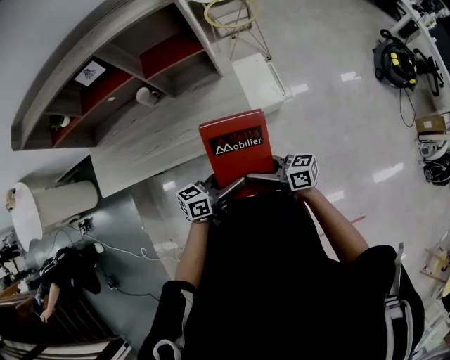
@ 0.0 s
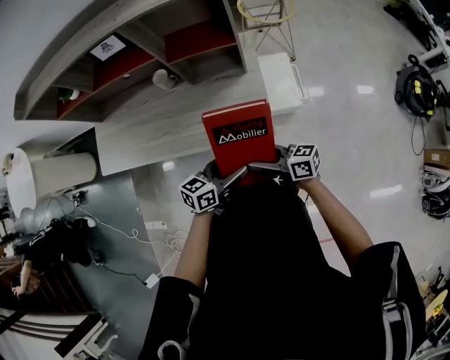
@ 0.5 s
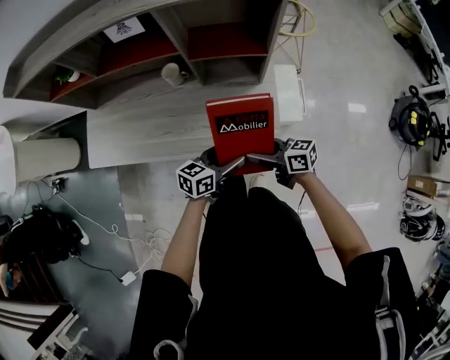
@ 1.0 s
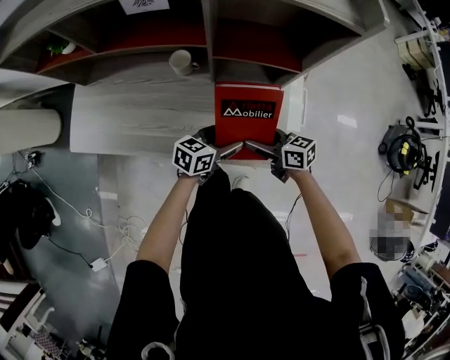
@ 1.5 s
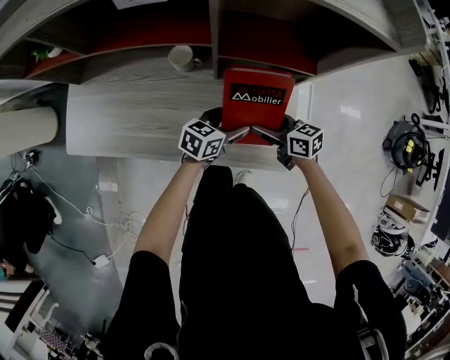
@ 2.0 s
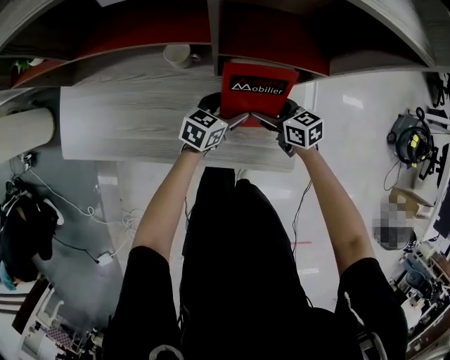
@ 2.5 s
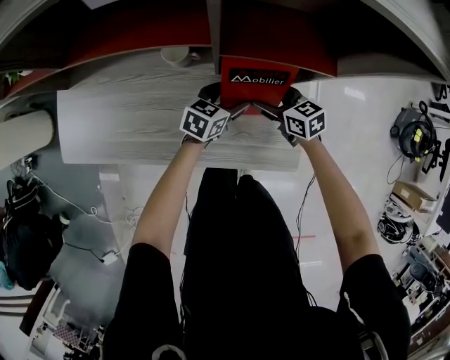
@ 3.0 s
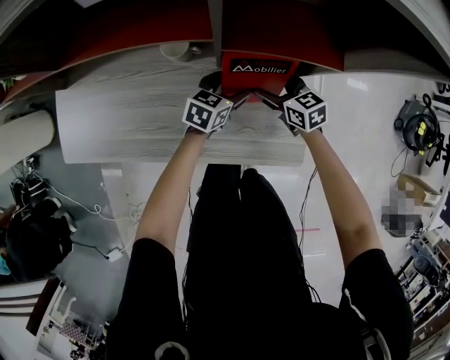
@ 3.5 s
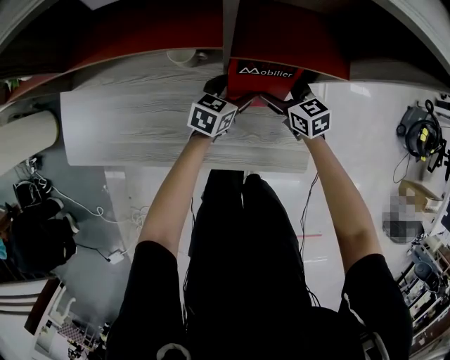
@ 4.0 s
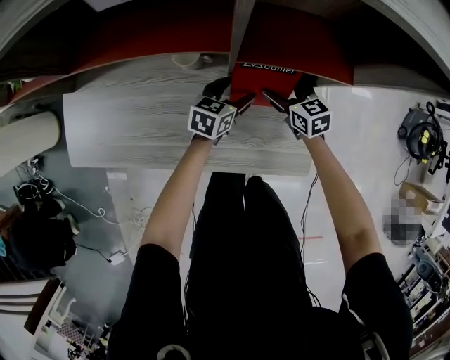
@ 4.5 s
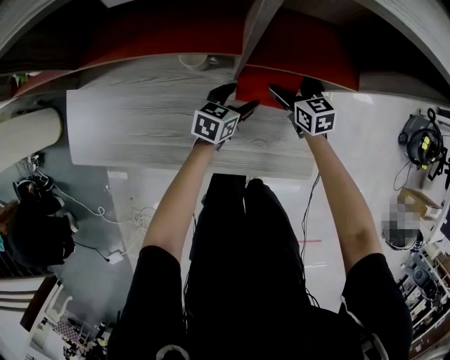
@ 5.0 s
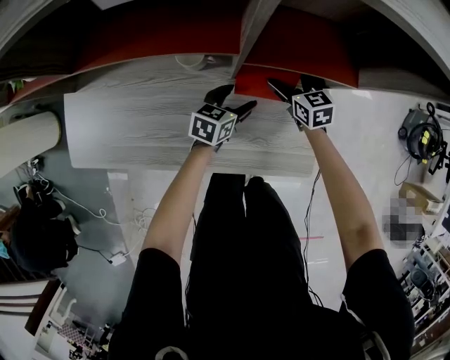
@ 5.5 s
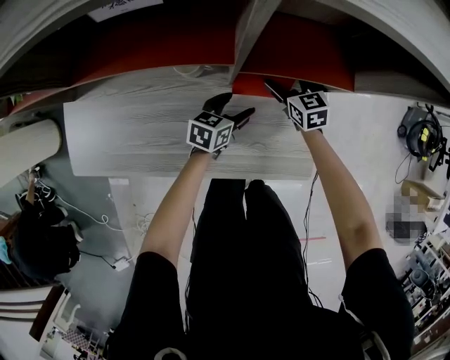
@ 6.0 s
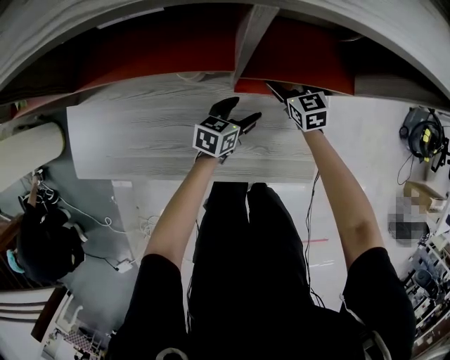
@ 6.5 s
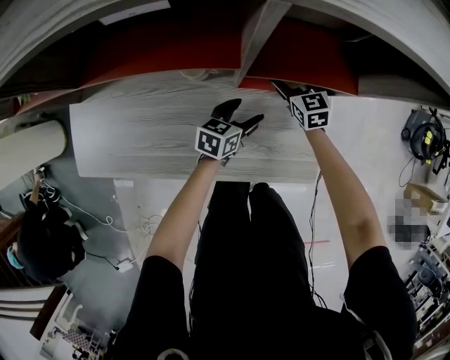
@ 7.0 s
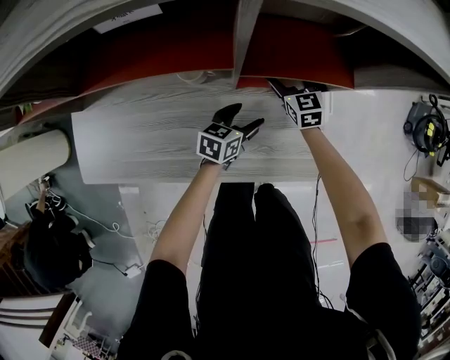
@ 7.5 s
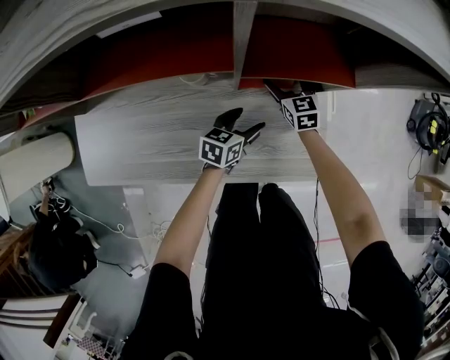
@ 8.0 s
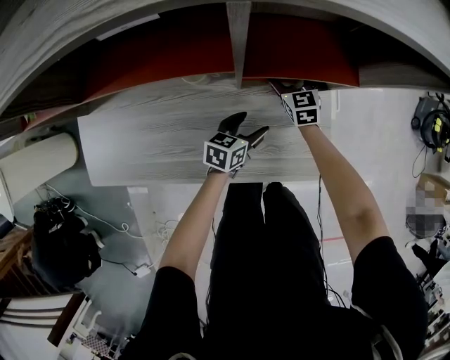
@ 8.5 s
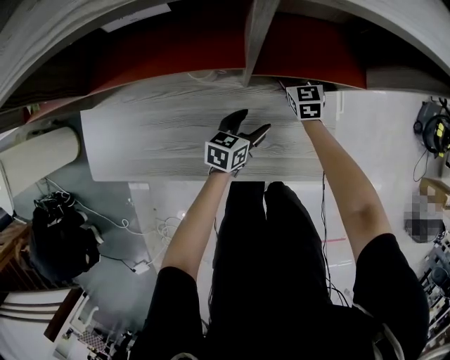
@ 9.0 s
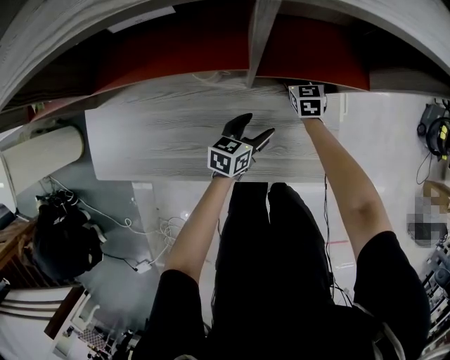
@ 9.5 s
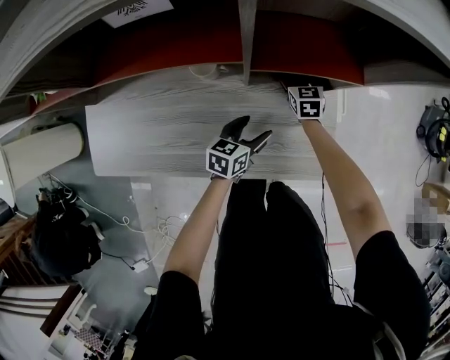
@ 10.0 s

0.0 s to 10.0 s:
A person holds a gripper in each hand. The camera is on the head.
0.0 to 2.0 s: The right gripper changes place by roughly 40 cm, and turns by approximately 30 degrees. Meanwhile the left gripper shifts by approximately 40 cm, turns by some 30 degrees, and opens.
2.0 to 4.0 s: The two grippers go about 15 cm forward and downward. The right gripper rotates about 20 degrees.
4.0 to 6.0 s: The right gripper moves forward, some 5 cm.
6.0 to 8.0 s: The grippers make only small movements.
8.0 to 10.0 s: The grippers stay close to where they were, moving slightly.

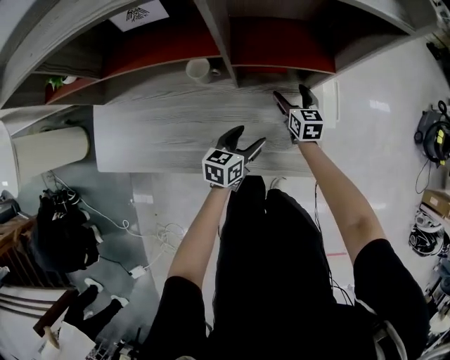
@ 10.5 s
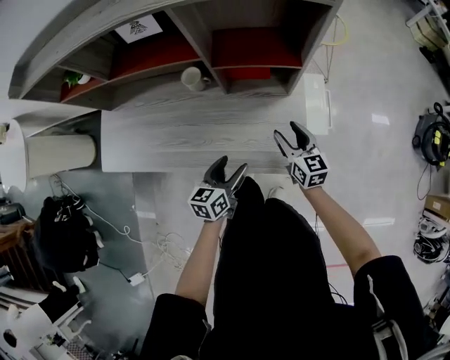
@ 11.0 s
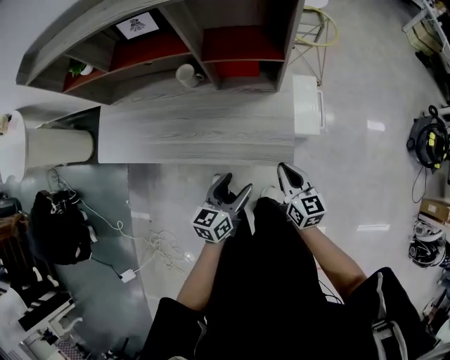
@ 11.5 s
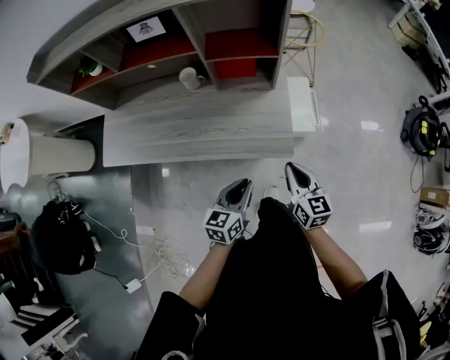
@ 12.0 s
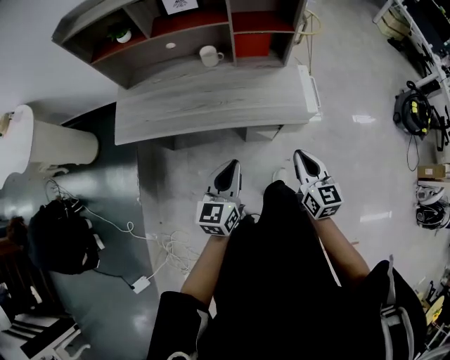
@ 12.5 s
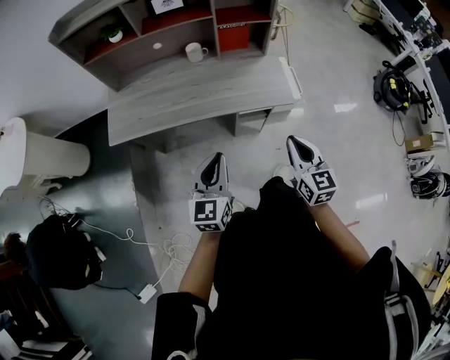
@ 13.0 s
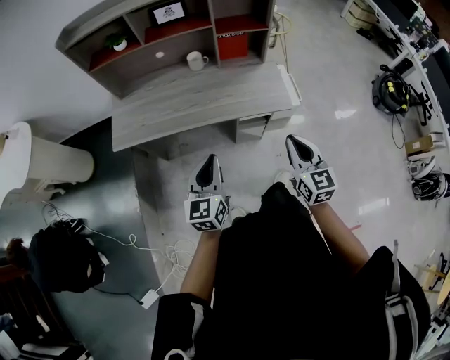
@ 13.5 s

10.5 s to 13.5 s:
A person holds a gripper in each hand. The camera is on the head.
10.5 to 12.0 s: Both grippers travel together backward and upward, some 35 cm. The left gripper closes up. The right gripper closes up.
12.0 to 13.5 s: The left gripper heads to the left, backward and upward, covering some 35 cm, and changes its angle by roughly 20 degrees; the right gripper moves backward, to the left and upward, about 30 cm.

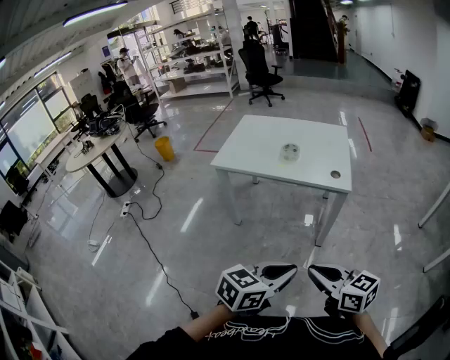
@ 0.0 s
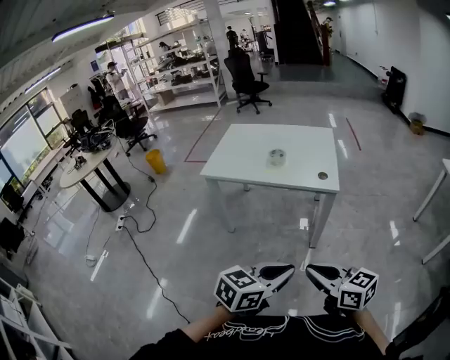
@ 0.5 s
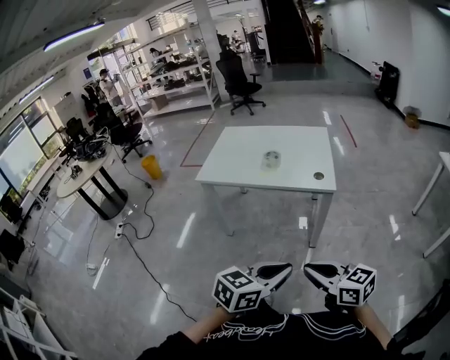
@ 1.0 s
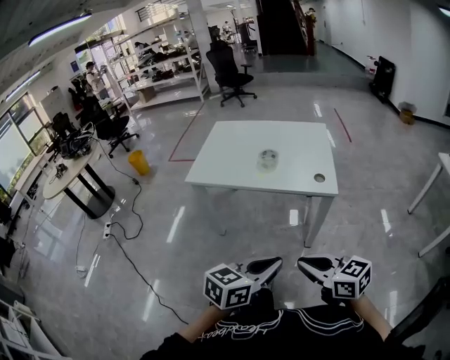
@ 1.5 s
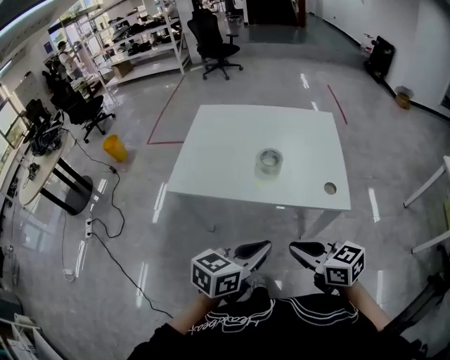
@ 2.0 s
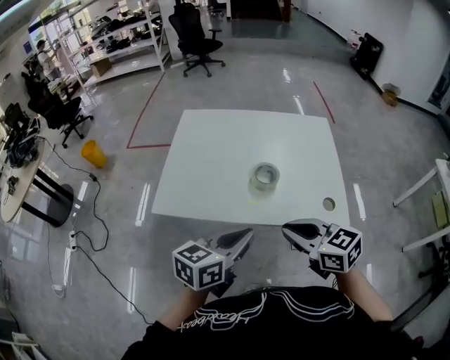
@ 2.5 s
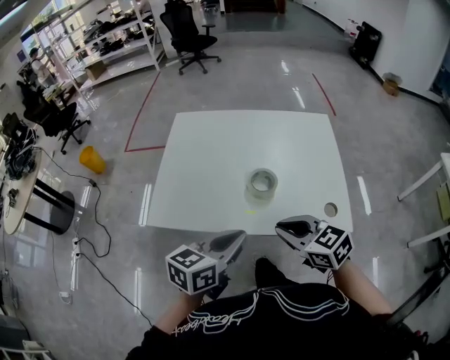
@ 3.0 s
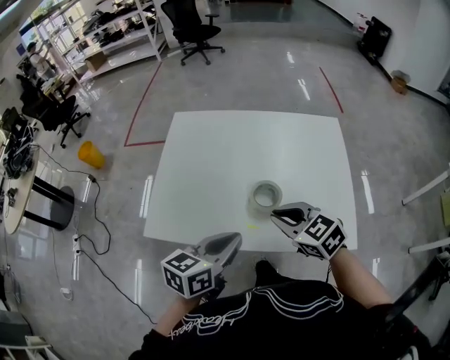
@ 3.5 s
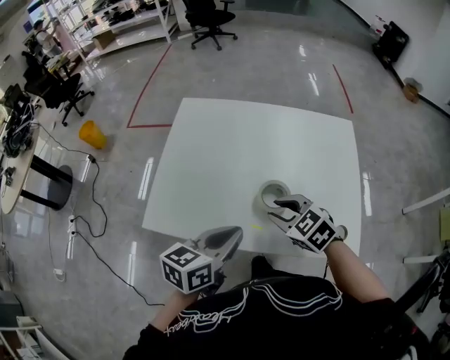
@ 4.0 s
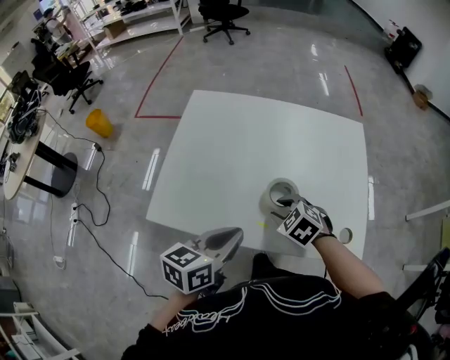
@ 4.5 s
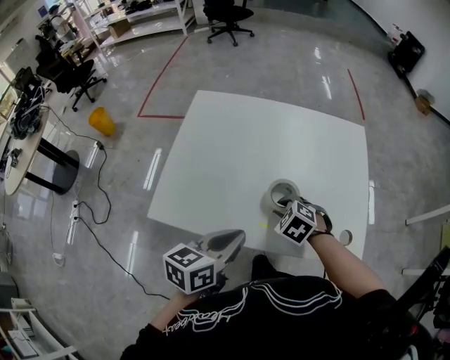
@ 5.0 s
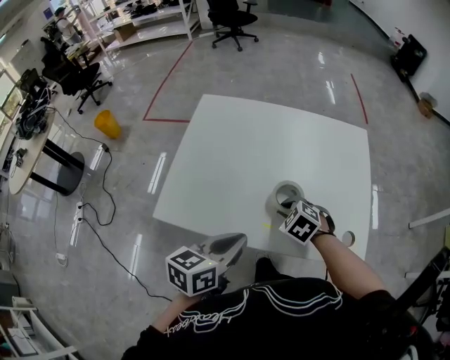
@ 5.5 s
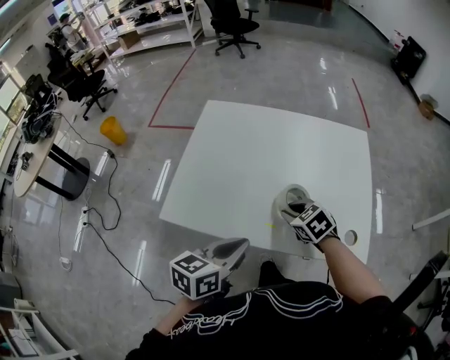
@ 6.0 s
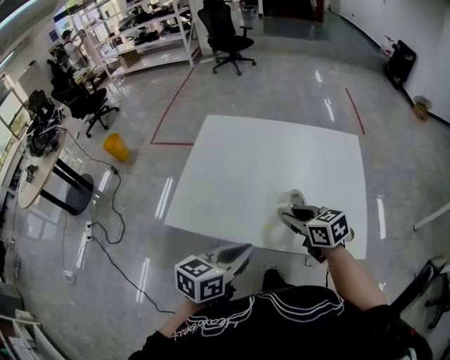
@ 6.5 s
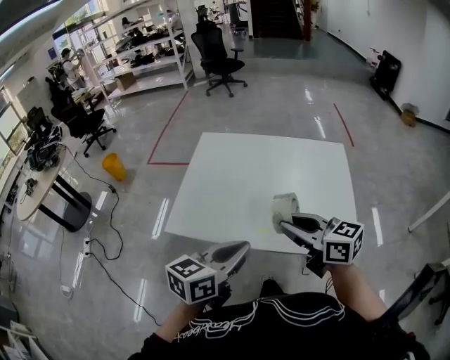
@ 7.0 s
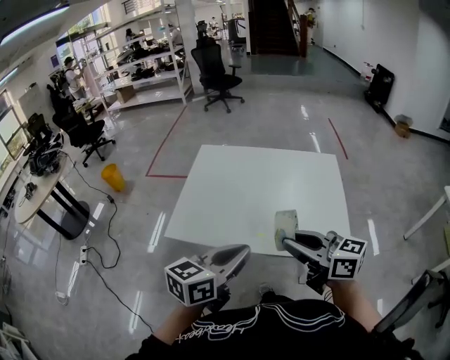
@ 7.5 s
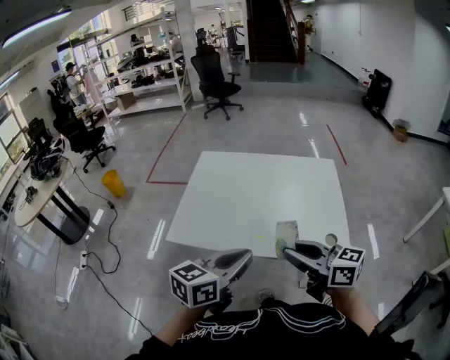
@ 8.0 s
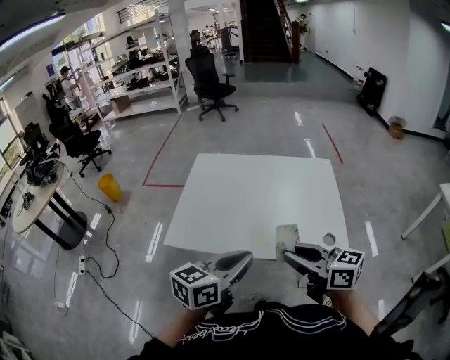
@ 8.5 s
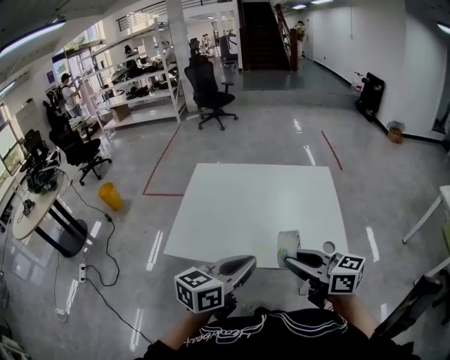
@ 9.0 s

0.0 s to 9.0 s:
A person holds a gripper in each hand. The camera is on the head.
0.0 to 2.0 s: The two grippers go some 30 cm forward.
2.0 to 4.5 s: The right gripper goes some 35 cm forward and downward, tips its fingers downward by roughly 40 degrees, and opens its fingers. Meanwhile the left gripper heads forward, covering roughly 25 cm.
4.5 to 7.0 s: The right gripper moves upward and backward, some 25 cm, and tips its fingers upward by some 50 degrees, while the left gripper shifts approximately 15 cm upward and backward.
7.0 to 9.0 s: The right gripper moves backward, about 10 cm.

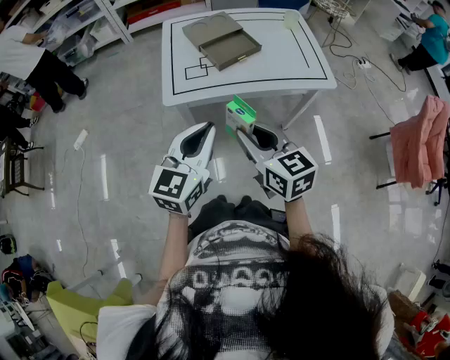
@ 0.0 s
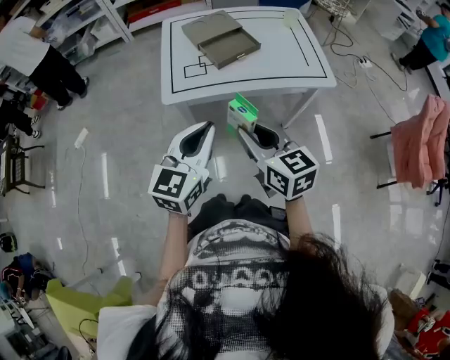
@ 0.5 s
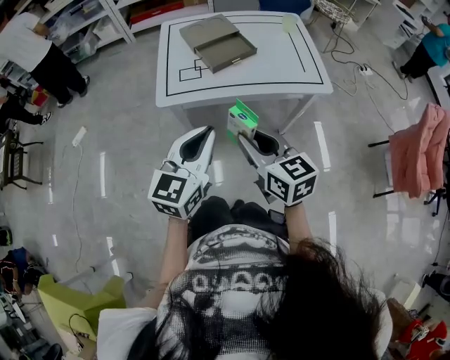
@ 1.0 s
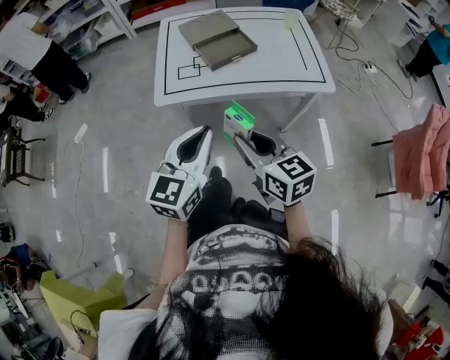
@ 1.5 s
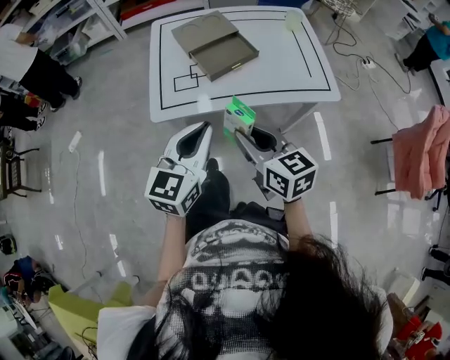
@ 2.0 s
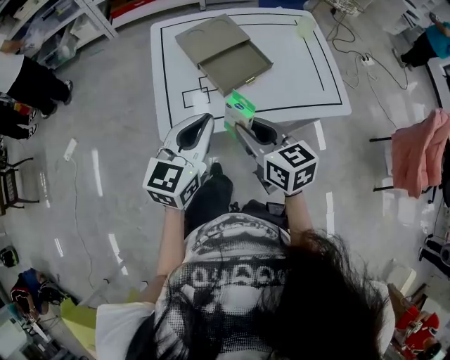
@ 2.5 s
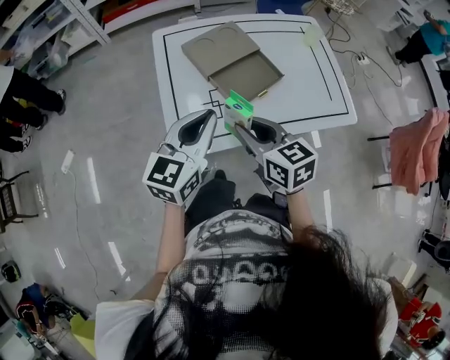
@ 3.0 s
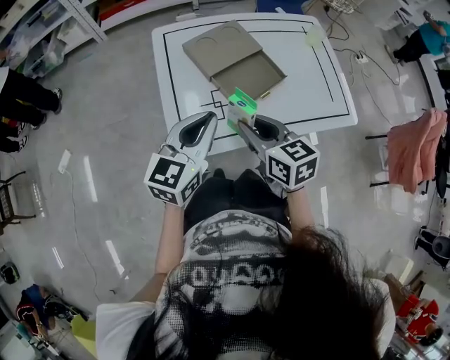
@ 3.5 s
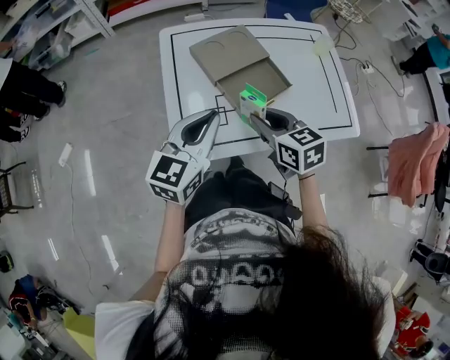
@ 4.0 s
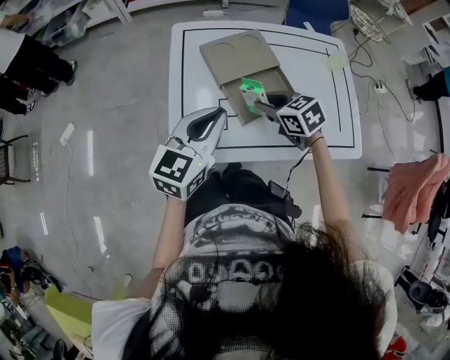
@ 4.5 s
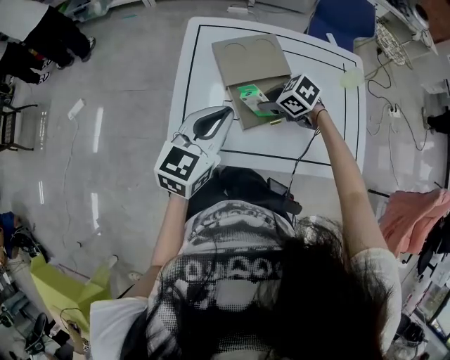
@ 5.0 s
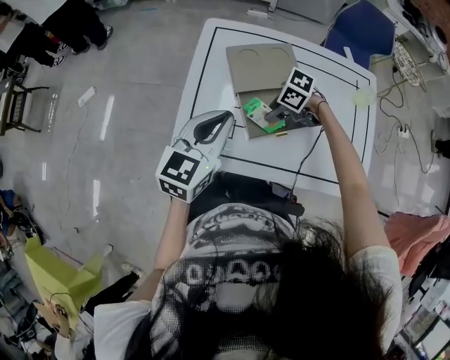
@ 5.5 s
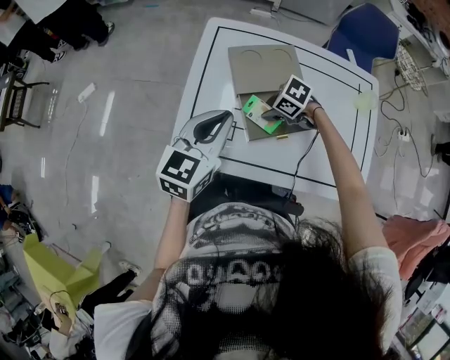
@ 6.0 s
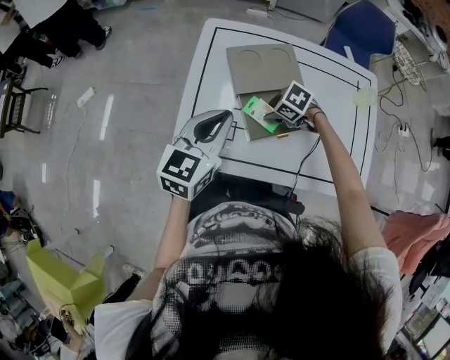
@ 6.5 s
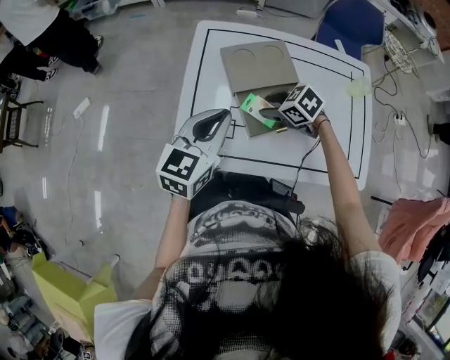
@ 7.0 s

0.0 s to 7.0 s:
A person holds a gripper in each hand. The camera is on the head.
0.0 to 2.0 s: The grippers both shift forward by approximately 10 cm.
2.0 to 3.5 s: Both grippers travel together forward and to the left, approximately 25 cm.
3.5 to 5.0 s: The left gripper changes place by approximately 10 cm, while the right gripper ends up some 20 cm from where it was, and swivels approximately 60 degrees.
5.0 to 7.0 s: The right gripper opens its fingers.
